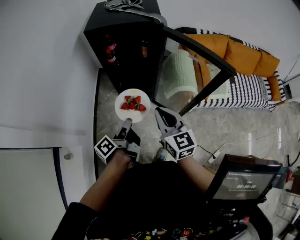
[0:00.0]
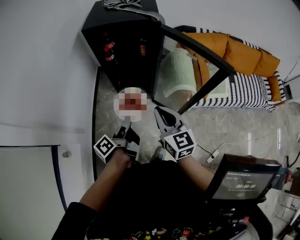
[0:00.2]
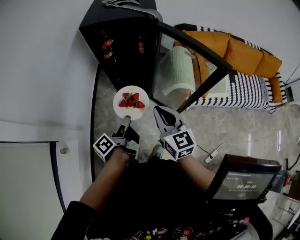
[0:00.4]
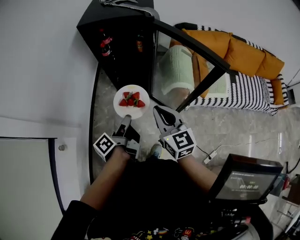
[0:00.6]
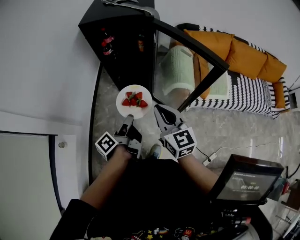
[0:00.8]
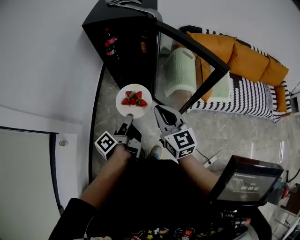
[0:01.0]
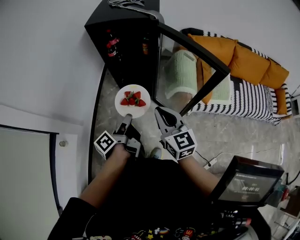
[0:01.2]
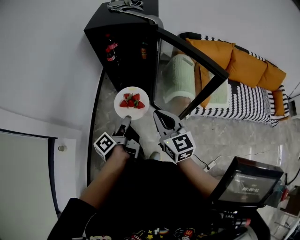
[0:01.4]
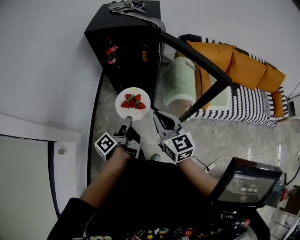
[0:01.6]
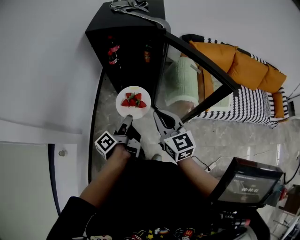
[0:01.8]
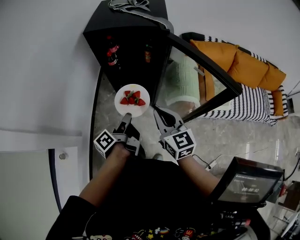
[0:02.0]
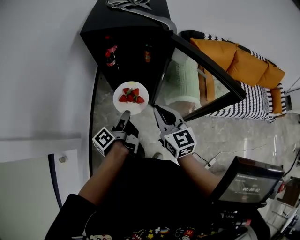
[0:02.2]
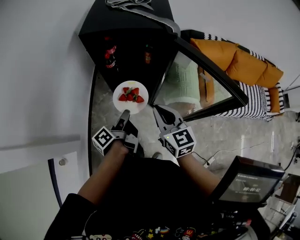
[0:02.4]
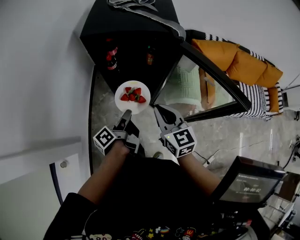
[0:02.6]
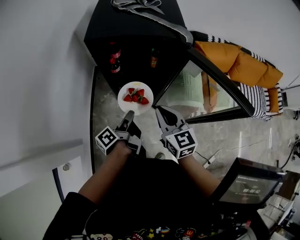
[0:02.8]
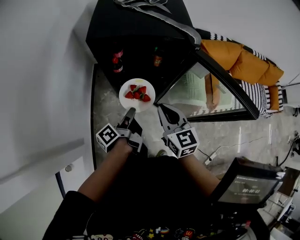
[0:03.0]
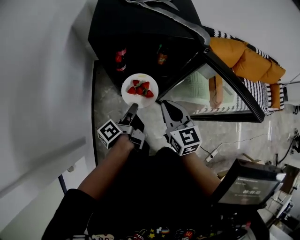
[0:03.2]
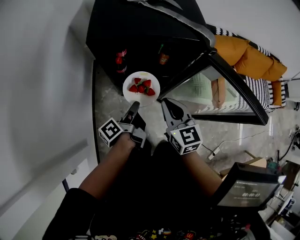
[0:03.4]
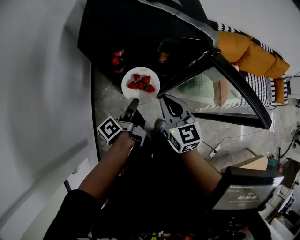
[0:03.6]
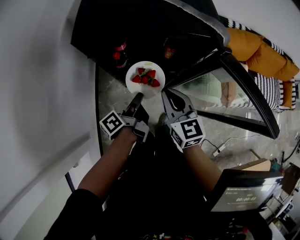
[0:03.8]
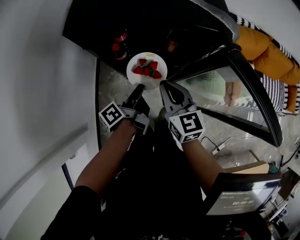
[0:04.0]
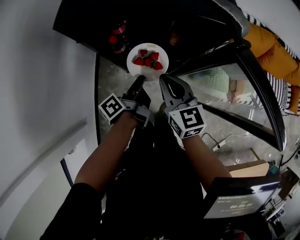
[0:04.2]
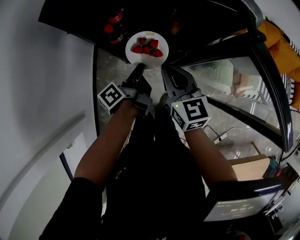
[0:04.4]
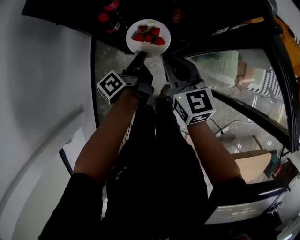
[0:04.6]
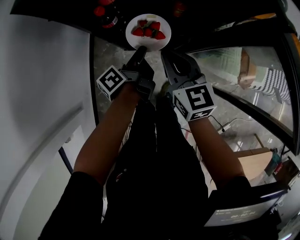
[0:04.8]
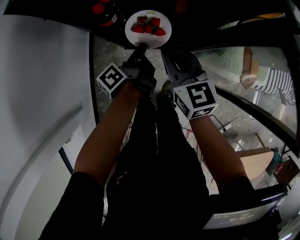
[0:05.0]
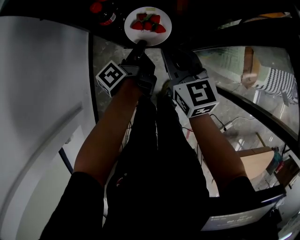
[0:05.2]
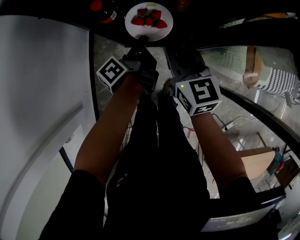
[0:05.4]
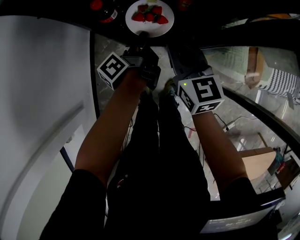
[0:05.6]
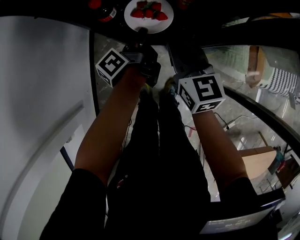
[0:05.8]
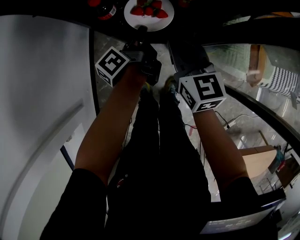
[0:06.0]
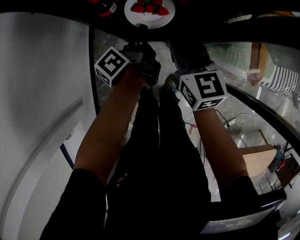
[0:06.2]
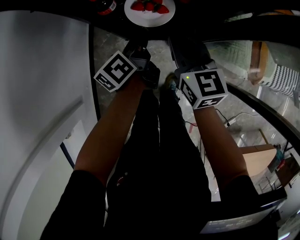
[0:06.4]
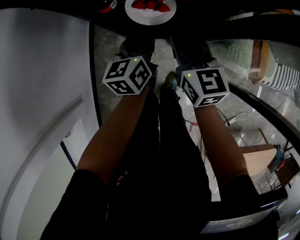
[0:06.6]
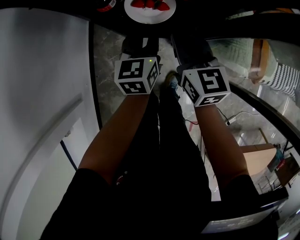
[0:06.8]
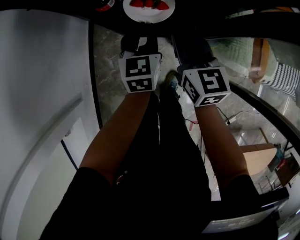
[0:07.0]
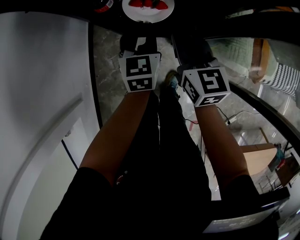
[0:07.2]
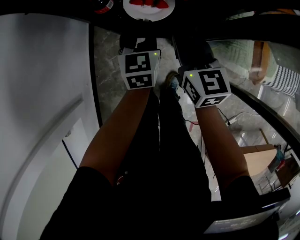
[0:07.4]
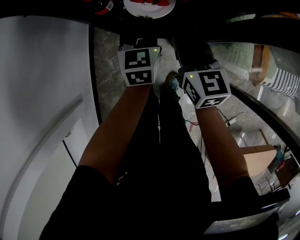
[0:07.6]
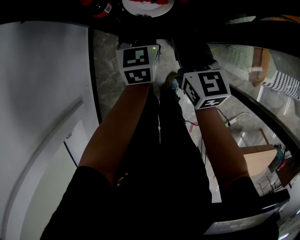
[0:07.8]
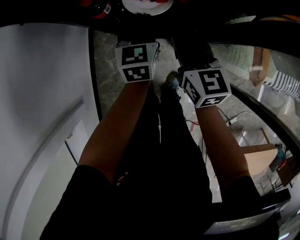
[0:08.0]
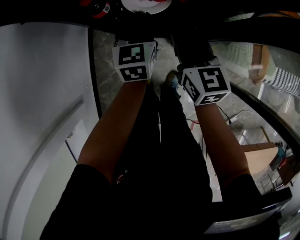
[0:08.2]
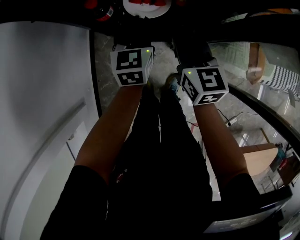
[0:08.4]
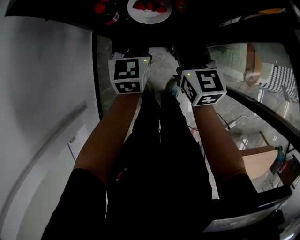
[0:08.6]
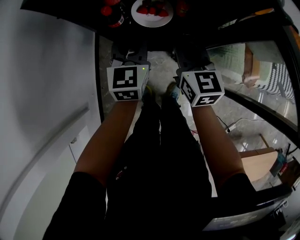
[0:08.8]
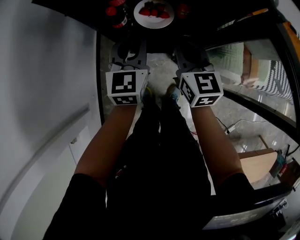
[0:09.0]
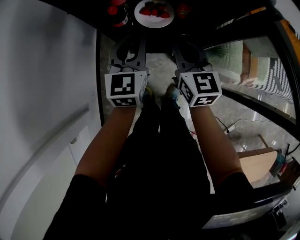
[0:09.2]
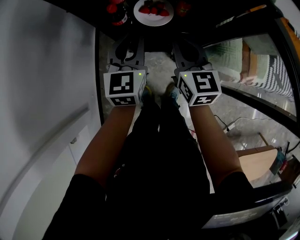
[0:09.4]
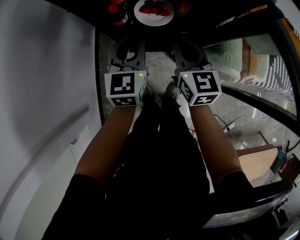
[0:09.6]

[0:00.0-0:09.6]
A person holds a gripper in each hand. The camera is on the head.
0:01.6 to 0:03.2: The right gripper changes place by about 25 cm.
0:03.2 to 0:04.8: The right gripper travels downward by some 15 cm.
0:08.0 to 0:09.6: The right gripper moves upward, some 5 cm.

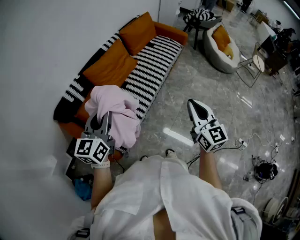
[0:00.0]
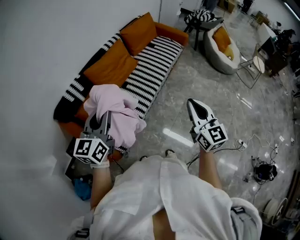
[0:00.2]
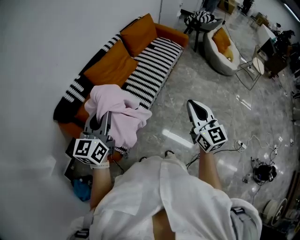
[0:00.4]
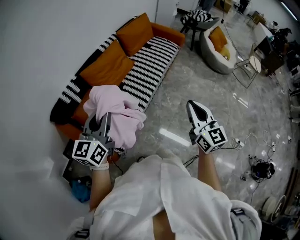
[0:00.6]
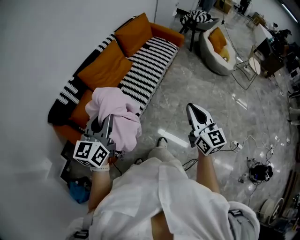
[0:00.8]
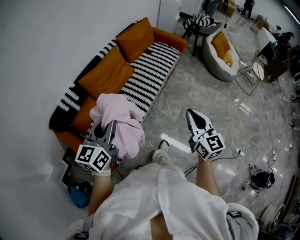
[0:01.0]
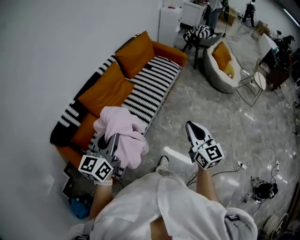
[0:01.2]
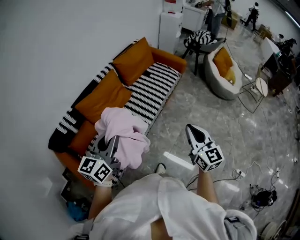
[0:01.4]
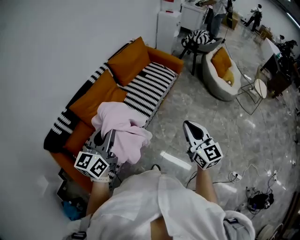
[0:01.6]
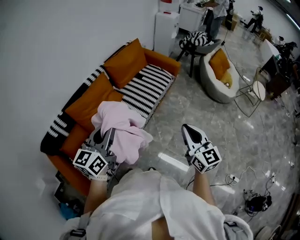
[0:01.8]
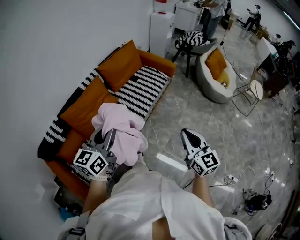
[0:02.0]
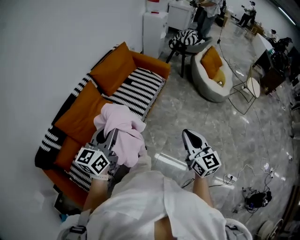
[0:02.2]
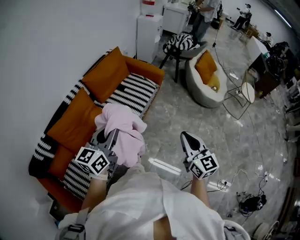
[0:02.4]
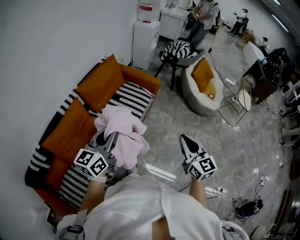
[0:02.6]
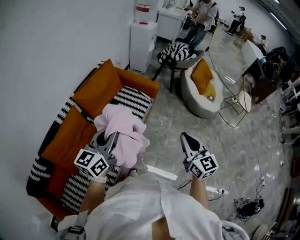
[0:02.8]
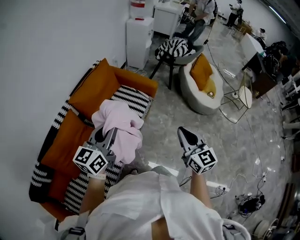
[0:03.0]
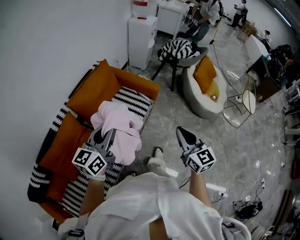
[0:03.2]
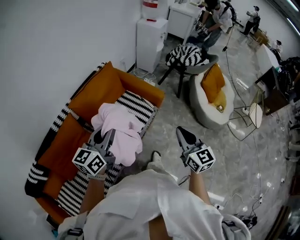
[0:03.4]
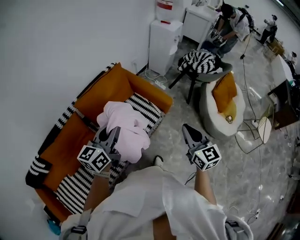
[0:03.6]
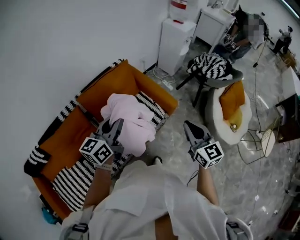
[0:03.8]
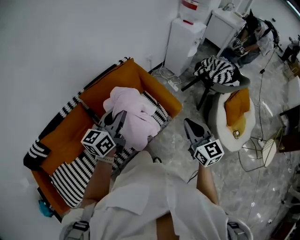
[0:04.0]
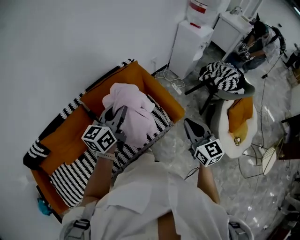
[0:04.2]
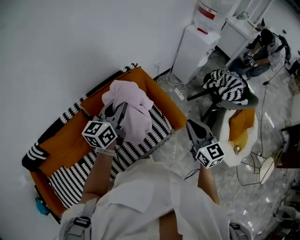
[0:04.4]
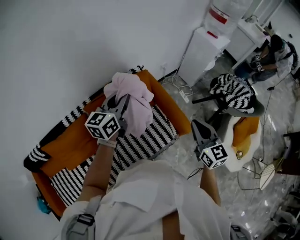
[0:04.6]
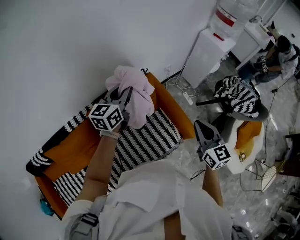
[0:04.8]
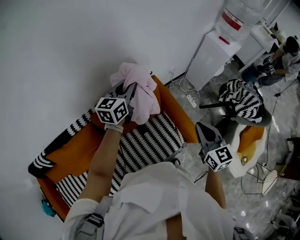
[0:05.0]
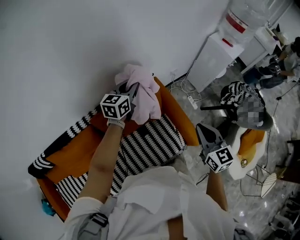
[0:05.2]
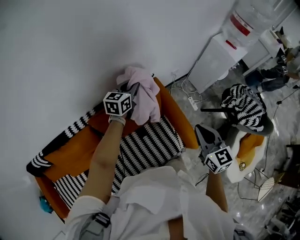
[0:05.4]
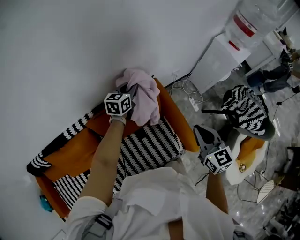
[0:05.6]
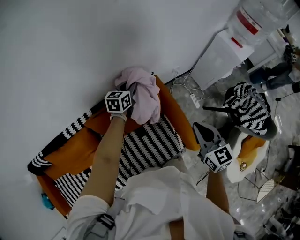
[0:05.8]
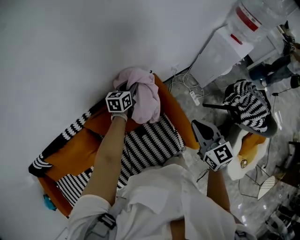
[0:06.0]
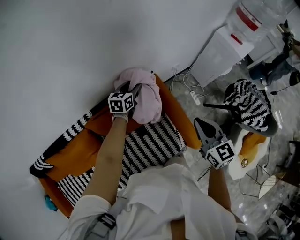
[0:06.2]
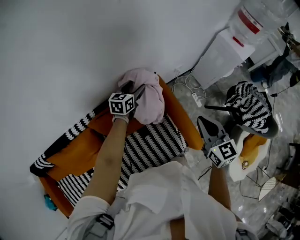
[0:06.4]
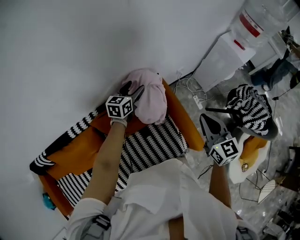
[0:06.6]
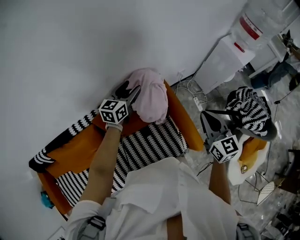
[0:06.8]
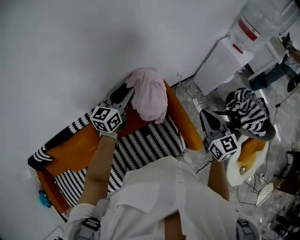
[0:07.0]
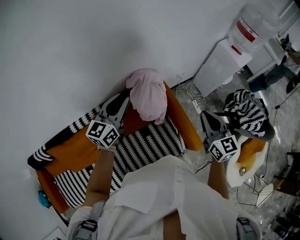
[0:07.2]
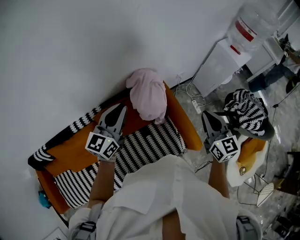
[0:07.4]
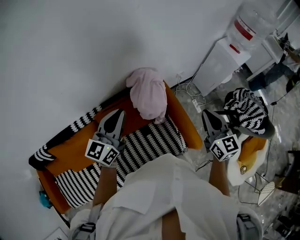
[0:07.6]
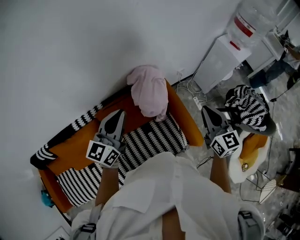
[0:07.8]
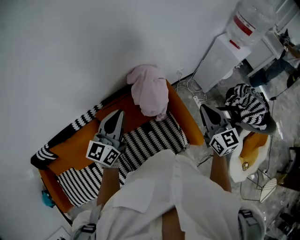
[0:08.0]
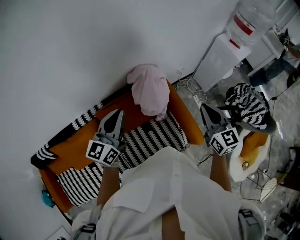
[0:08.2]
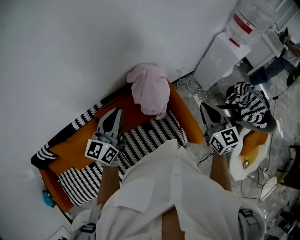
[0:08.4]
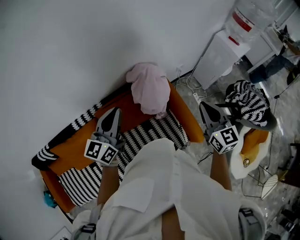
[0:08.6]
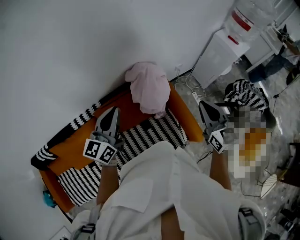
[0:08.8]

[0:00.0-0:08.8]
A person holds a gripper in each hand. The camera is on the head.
0:00.0 to 0:01.4: The right gripper heads forward and to the right, covering about 20 cm, while the left gripper travels to the right and forward by about 20 cm.
0:01.4 to 0:03.0: Both grippers move forward, roughly 40 cm.
0:03.0 to 0:04.4: The left gripper shifts by some 40 cm, and rotates some 30 degrees, while the right gripper ends up about 50 cm from where it was, and rotates roughly 30 degrees.
0:04.4 to 0:05.8: The left gripper travels forward and downward by roughly 40 cm, and turns by about 20 degrees, while the right gripper shifts some 25 cm forward.
0:05.8 to 0:07.4: The left gripper moves backward and upward, approximately 30 cm, rotates some 30 degrees, and opens, then closes again. The right gripper moves upward, some 5 cm.
0:07.4 to 0:08.8: The grippers move only a little.

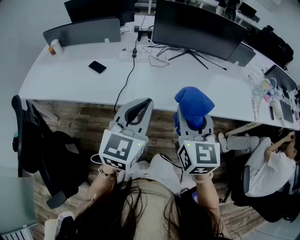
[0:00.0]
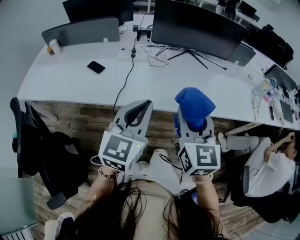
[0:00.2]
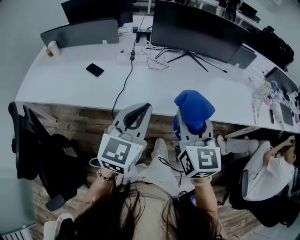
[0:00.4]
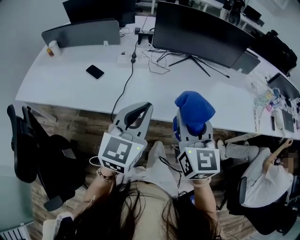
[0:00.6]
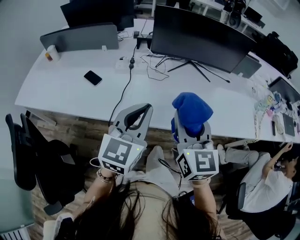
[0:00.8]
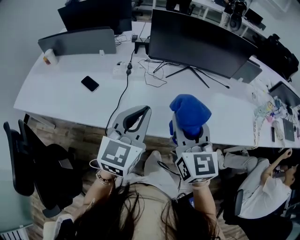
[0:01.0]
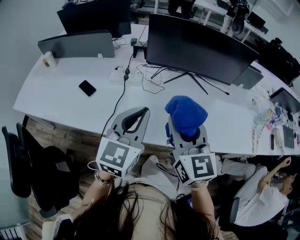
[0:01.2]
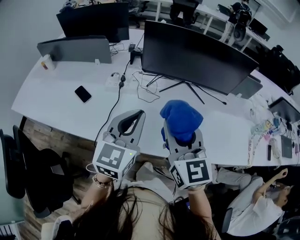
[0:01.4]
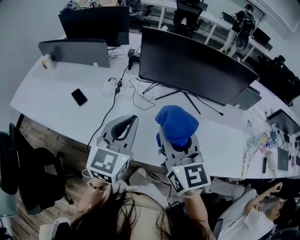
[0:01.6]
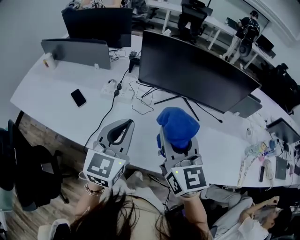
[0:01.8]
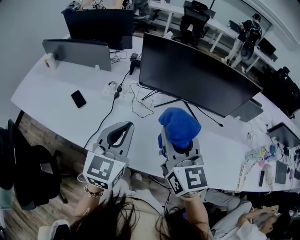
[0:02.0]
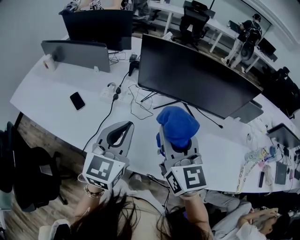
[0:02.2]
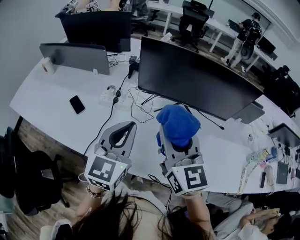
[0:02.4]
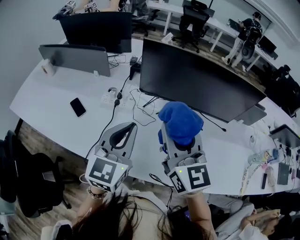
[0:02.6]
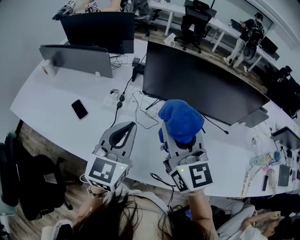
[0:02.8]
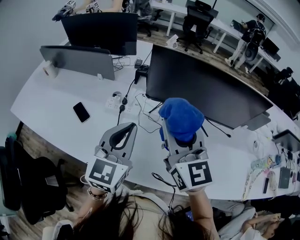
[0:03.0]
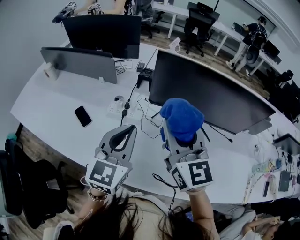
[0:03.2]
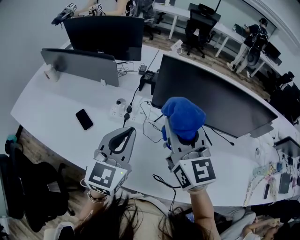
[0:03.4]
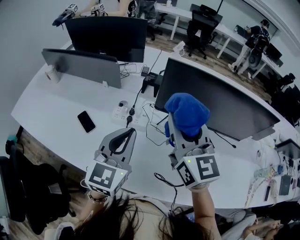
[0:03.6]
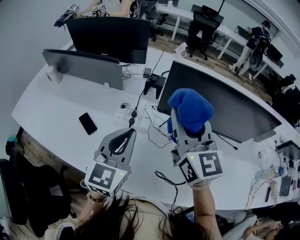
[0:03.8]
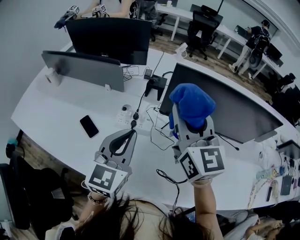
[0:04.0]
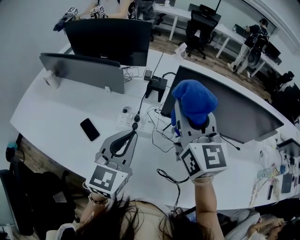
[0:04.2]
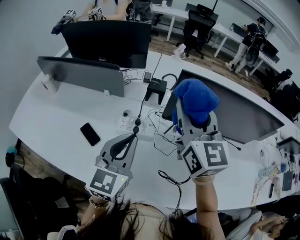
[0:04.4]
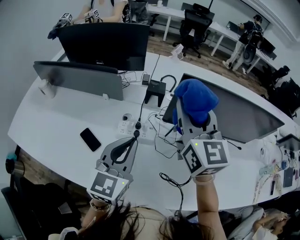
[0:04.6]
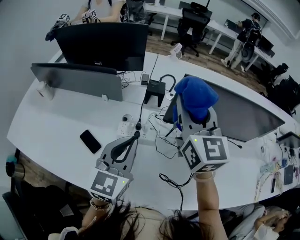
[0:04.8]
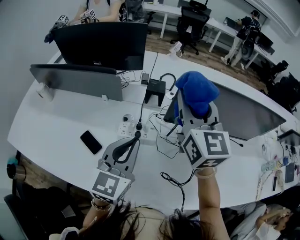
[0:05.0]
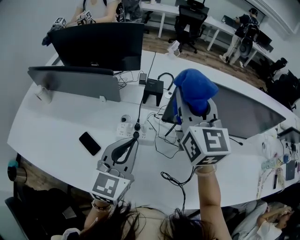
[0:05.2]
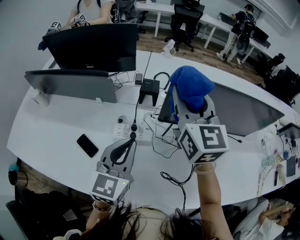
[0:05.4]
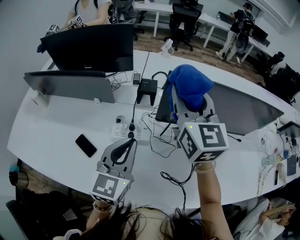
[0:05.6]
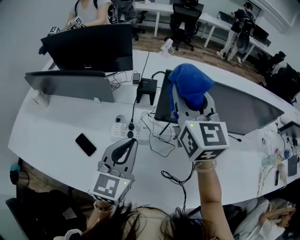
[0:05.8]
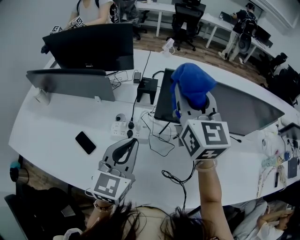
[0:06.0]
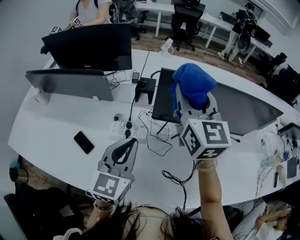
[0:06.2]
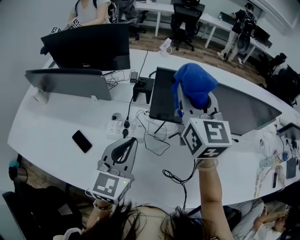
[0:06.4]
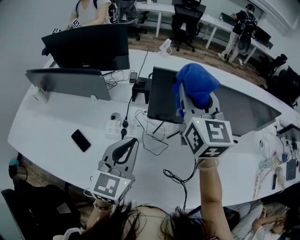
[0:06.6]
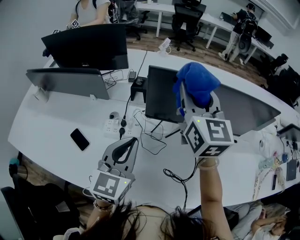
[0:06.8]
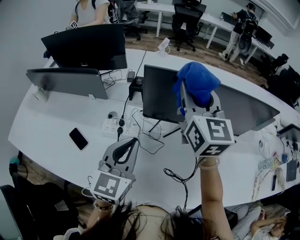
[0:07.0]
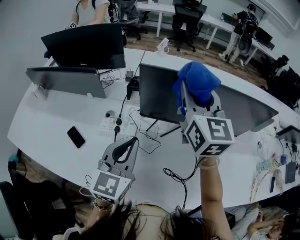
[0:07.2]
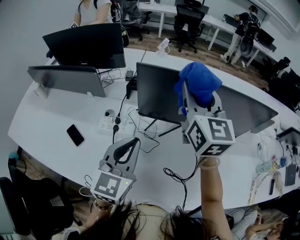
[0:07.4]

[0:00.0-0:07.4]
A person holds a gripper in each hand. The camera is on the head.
0:00.0 to 0:01.4: Both grippers move forward, approximately 20 cm.
0:01.4 to 0:03.0: The two grippers go roughly 15 cm forward.
0:03.0 to 0:04.4: The left gripper travels to the left and forward by some 15 cm. Meanwhile the right gripper is displaced forward and to the left by approximately 15 cm.
0:04.4 to 0:06.0: The right gripper shifts roughly 5 cm forward.
0:06.0 to 0:07.4: Both grippers travel together to the right, some 10 cm.
